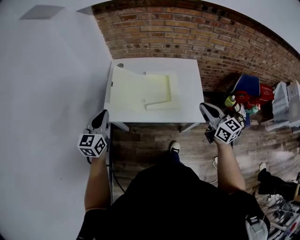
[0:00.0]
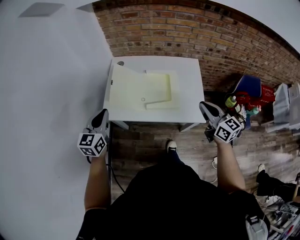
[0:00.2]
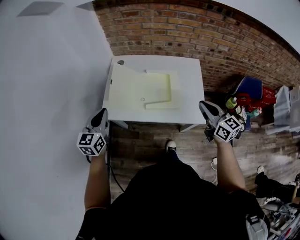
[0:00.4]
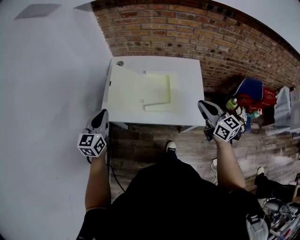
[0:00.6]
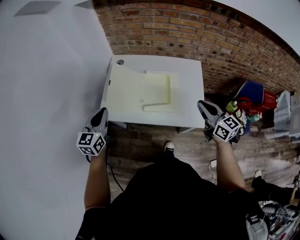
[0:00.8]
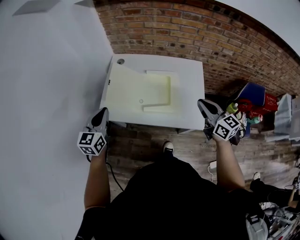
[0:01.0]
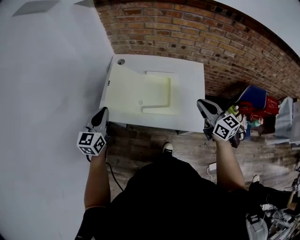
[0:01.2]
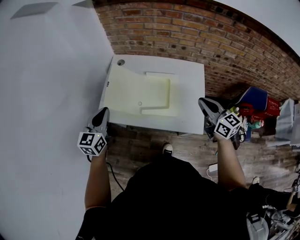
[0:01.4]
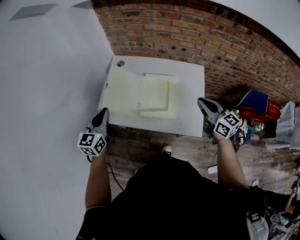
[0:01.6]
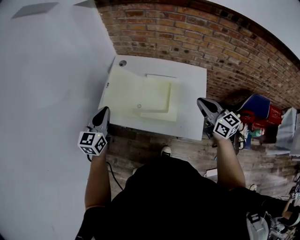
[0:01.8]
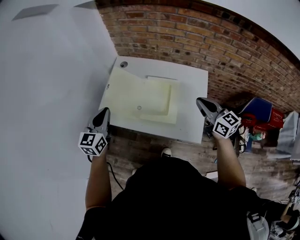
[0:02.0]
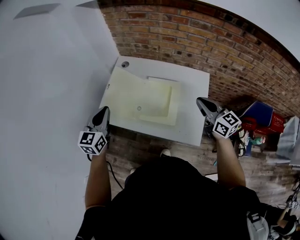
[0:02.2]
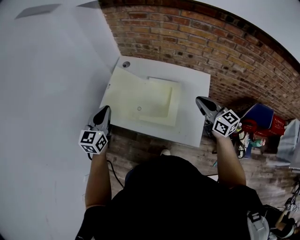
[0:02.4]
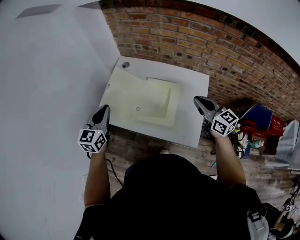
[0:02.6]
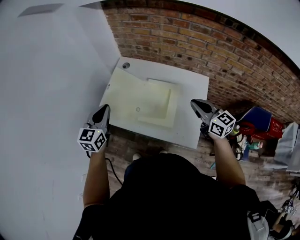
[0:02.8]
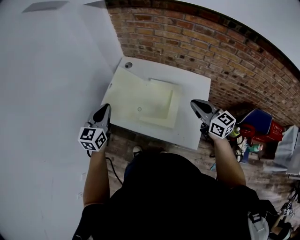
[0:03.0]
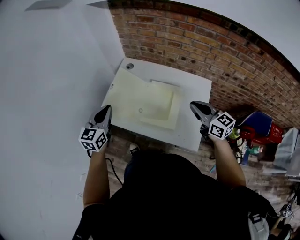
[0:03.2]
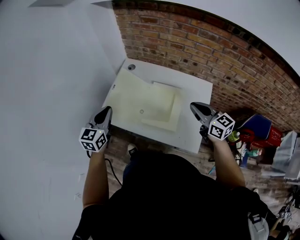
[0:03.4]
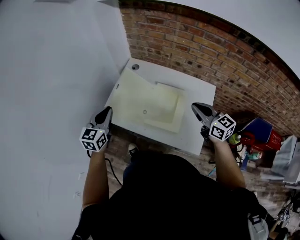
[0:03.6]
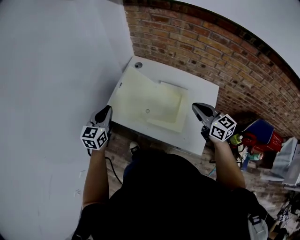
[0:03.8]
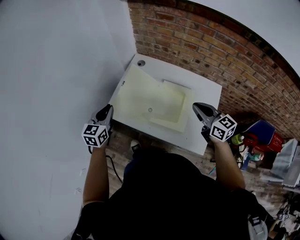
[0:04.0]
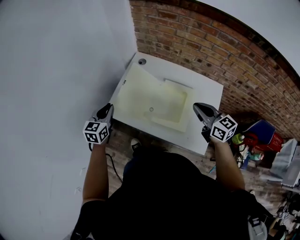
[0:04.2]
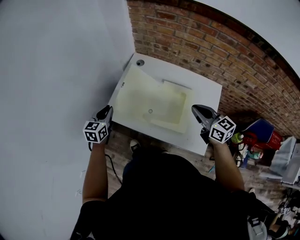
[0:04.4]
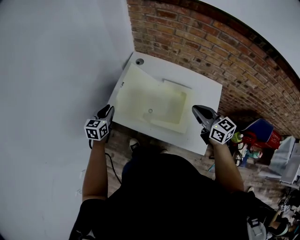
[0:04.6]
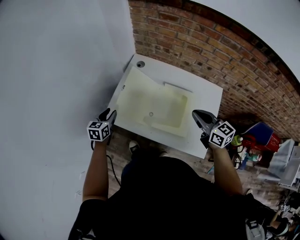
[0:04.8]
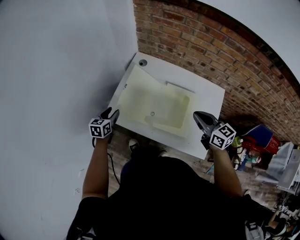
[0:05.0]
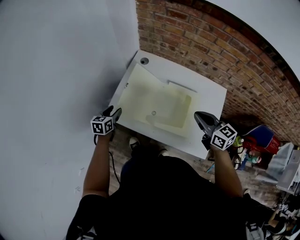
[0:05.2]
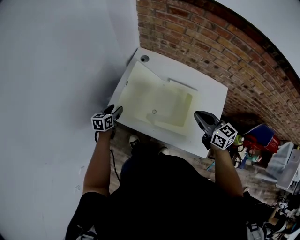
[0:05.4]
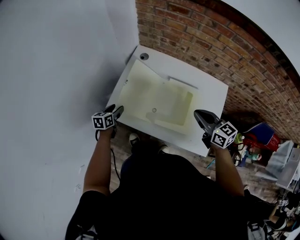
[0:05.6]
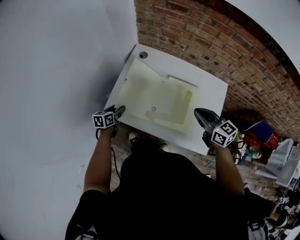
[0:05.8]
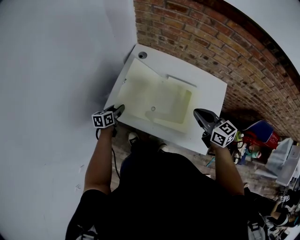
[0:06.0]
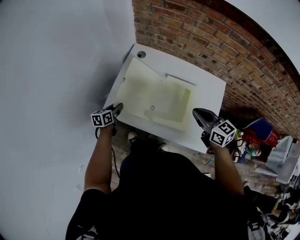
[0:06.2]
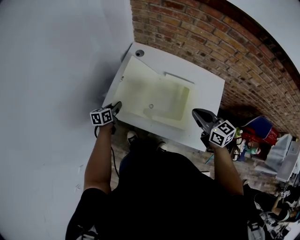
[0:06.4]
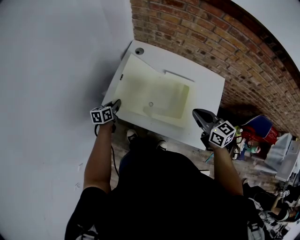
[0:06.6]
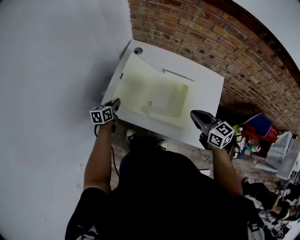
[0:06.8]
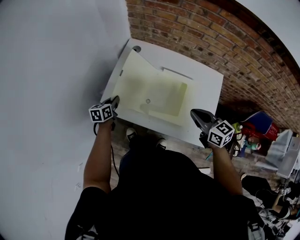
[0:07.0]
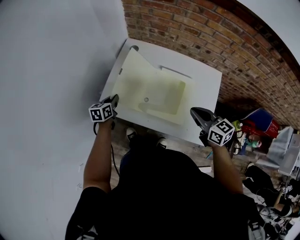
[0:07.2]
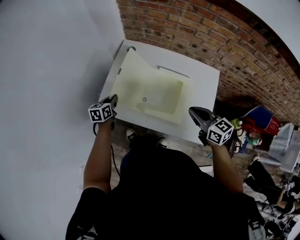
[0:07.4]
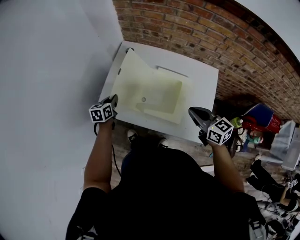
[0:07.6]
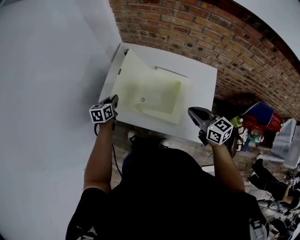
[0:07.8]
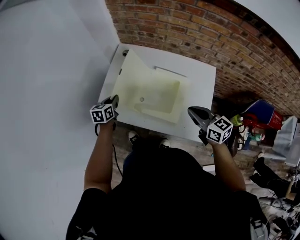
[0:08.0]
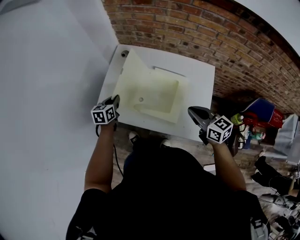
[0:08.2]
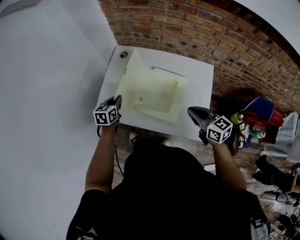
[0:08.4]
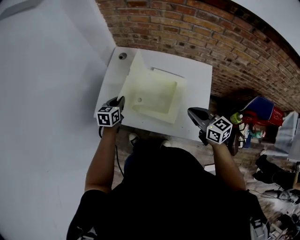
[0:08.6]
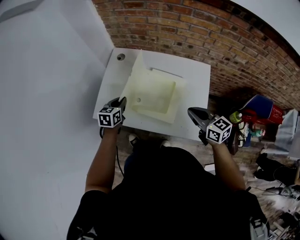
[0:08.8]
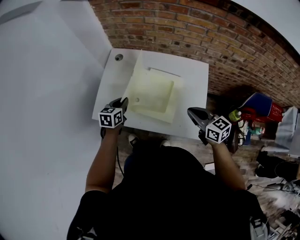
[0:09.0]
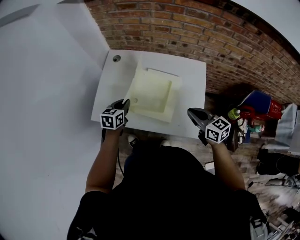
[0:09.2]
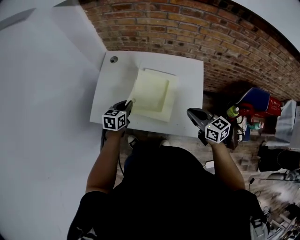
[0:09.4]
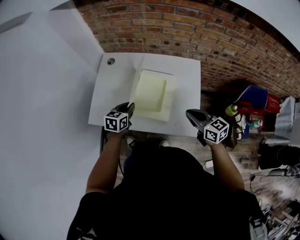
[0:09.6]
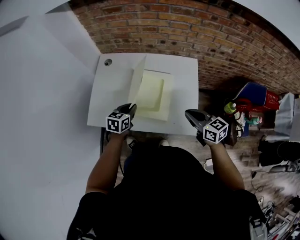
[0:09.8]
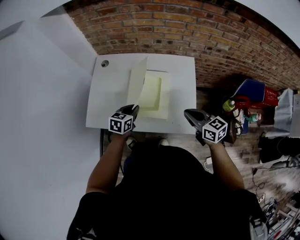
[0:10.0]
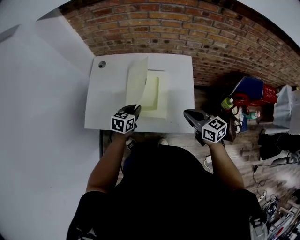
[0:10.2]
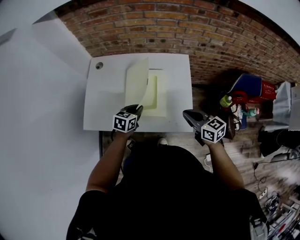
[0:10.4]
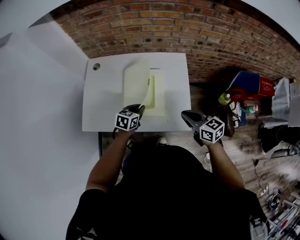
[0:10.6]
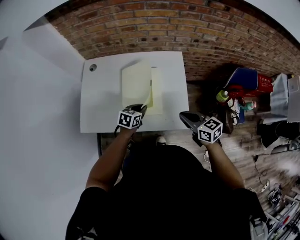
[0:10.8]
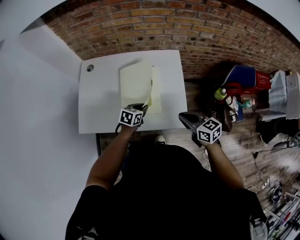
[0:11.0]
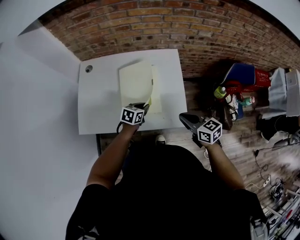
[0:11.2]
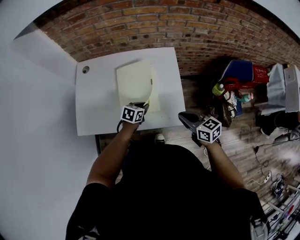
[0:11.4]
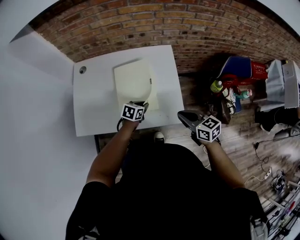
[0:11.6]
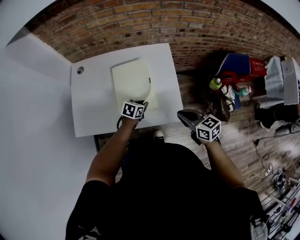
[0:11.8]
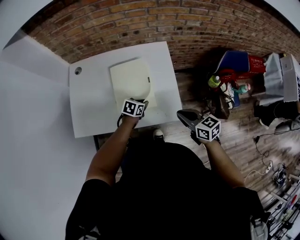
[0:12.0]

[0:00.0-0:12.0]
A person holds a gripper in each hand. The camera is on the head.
0:00.0 to 0:01.6: The left gripper heads to the right, covering roughly 5 cm; the right gripper goes some 15 cm forward and to the right.
0:01.6 to 0:03.0: The right gripper goes approximately 5 cm forward.
0:03.0 to 0:04.4: The right gripper goes roughly 10 cm to the left. Meanwhile the left gripper is displaced downward, to the left and forward by approximately 15 cm.
0:04.4 to 0:06.0: The right gripper moves some 5 cm. The left gripper goes some 15 cm downward, changes its angle by about 30 degrees, and opens.
0:06.0 to 0:07.6: The right gripper goes roughly 5 cm backward, while the left gripper ends up roughly 5 cm from where it was, and closes its fingers.
0:07.6 to 0:09.0: The left gripper heads to the right and upward, covering approximately 15 cm, while the right gripper is displaced to the right by about 5 cm.
0:09.0 to 0:10.4: The left gripper heads to the right, covering roughly 15 cm, and changes its angle by approximately 20 degrees. The right gripper travels to the right by roughly 5 cm.
0:10.4 to 0:12.0: The left gripper moves to the right and downward, some 15 cm, and turns by approximately 20 degrees. Meanwhile the right gripper changes place by approximately 5 cm.

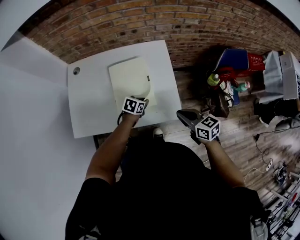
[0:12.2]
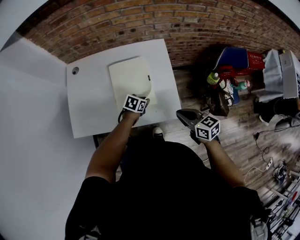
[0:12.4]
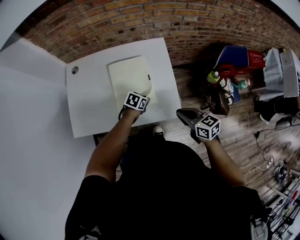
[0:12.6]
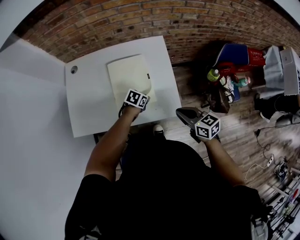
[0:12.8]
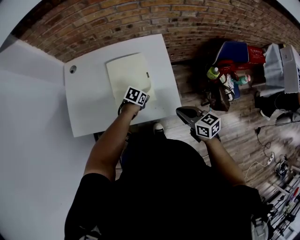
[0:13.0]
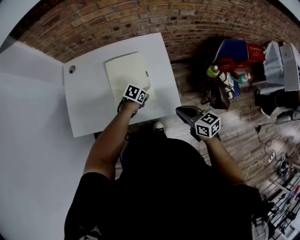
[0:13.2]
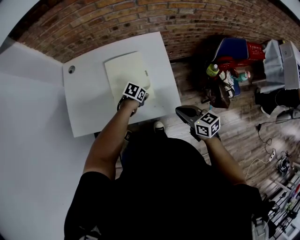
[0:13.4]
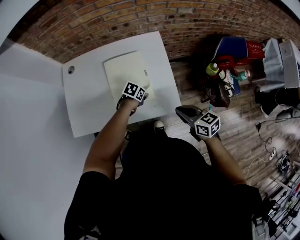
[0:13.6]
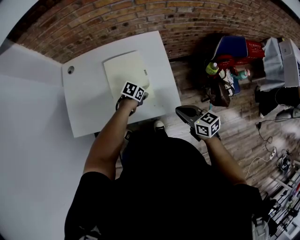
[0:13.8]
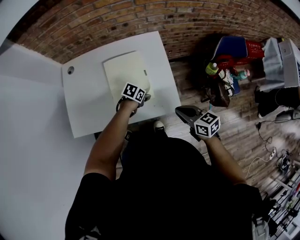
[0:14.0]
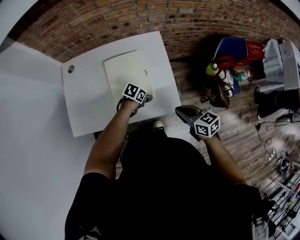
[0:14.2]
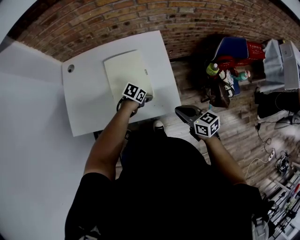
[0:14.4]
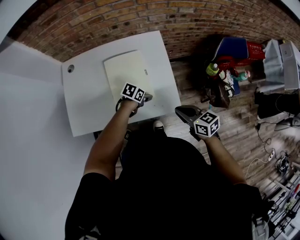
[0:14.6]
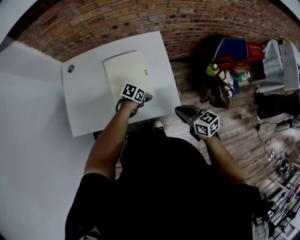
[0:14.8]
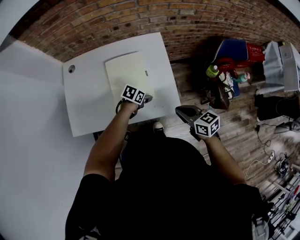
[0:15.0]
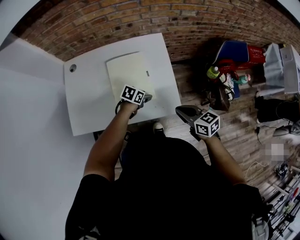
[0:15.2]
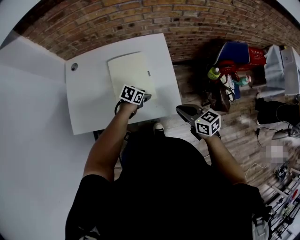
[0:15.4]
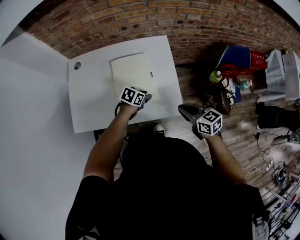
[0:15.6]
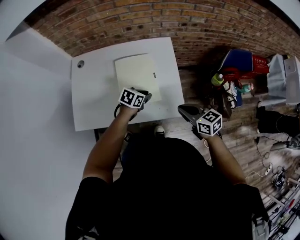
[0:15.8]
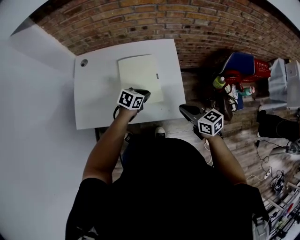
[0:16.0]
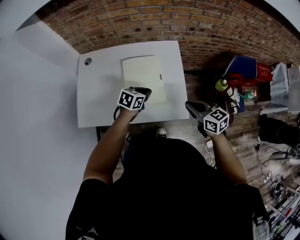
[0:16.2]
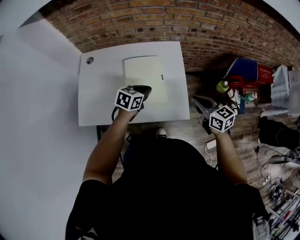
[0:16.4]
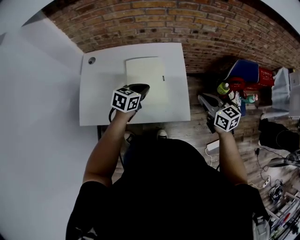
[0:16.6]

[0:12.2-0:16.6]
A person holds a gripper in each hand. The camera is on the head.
0:12.2 to 0:13.6: The grippers move only a little.
0:13.6 to 0:15.2: The left gripper opens its fingers.
0:15.2 to 0:16.6: The right gripper heads forward and upward, covering about 10 cm. Meanwhile the left gripper travels upward by approximately 20 cm, swivels about 30 degrees, and closes up.

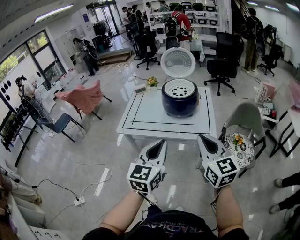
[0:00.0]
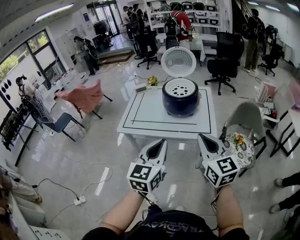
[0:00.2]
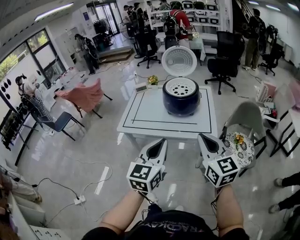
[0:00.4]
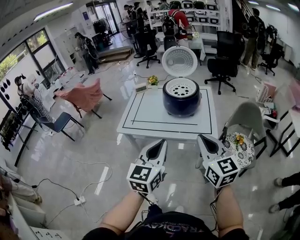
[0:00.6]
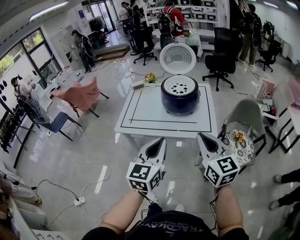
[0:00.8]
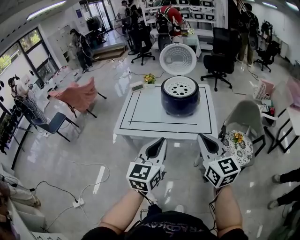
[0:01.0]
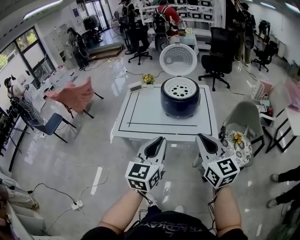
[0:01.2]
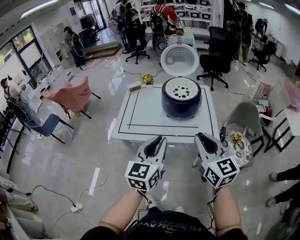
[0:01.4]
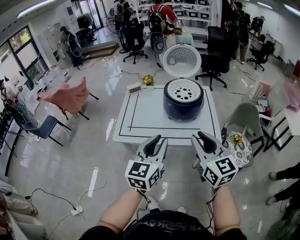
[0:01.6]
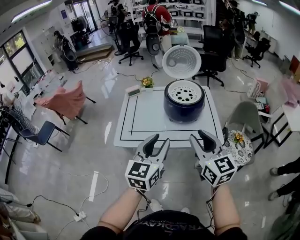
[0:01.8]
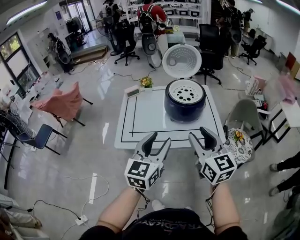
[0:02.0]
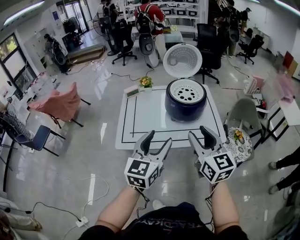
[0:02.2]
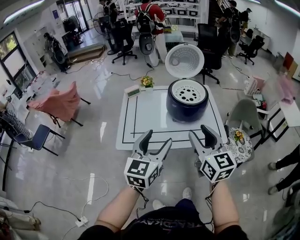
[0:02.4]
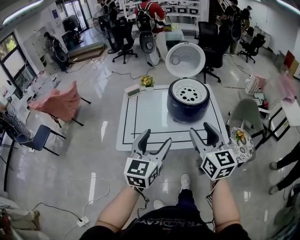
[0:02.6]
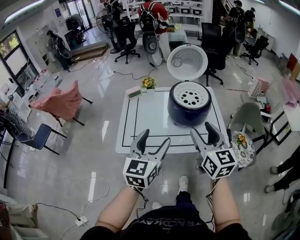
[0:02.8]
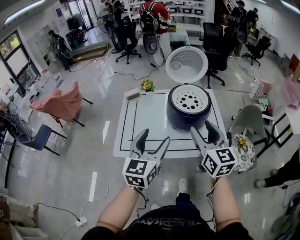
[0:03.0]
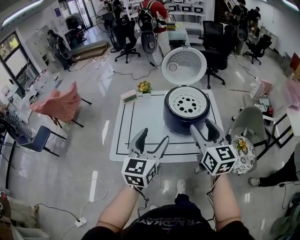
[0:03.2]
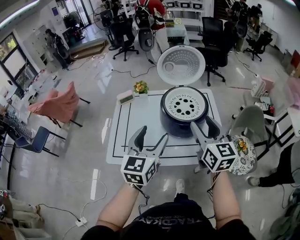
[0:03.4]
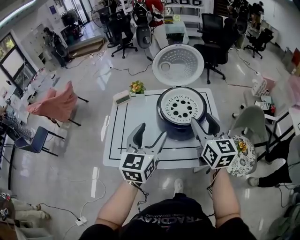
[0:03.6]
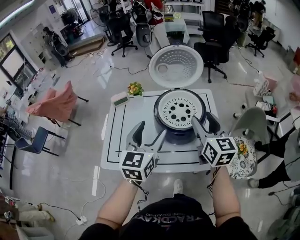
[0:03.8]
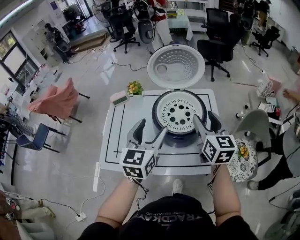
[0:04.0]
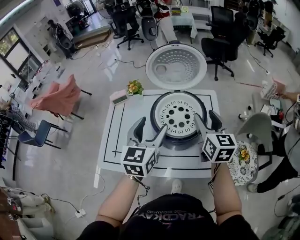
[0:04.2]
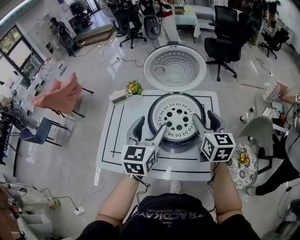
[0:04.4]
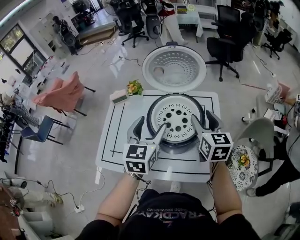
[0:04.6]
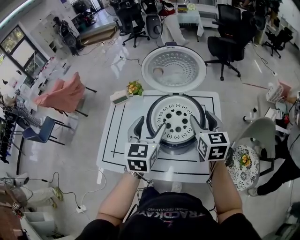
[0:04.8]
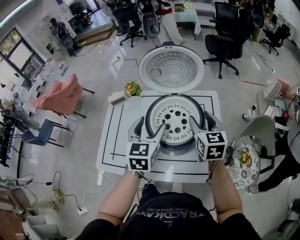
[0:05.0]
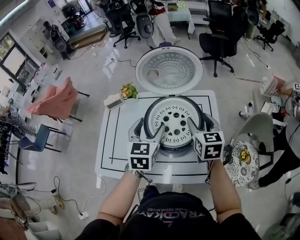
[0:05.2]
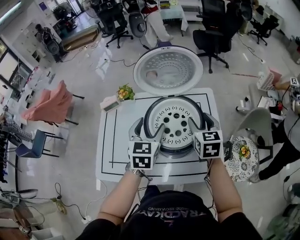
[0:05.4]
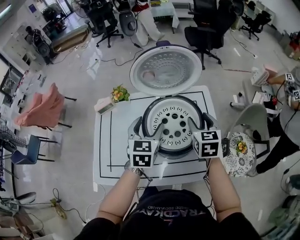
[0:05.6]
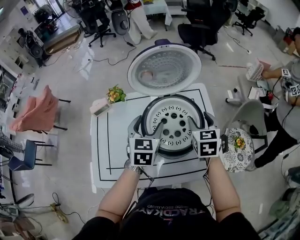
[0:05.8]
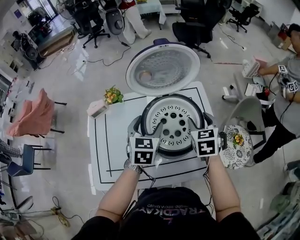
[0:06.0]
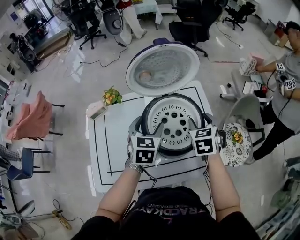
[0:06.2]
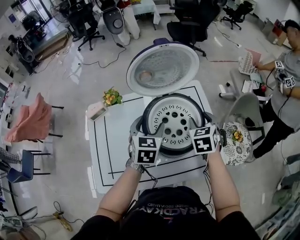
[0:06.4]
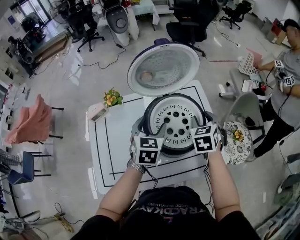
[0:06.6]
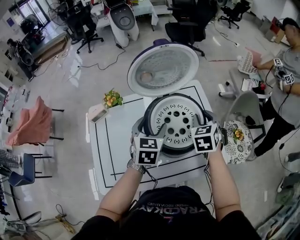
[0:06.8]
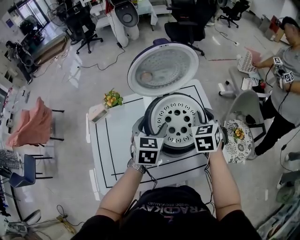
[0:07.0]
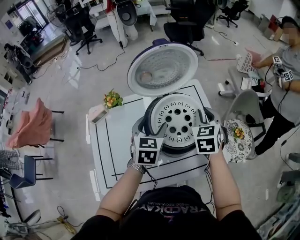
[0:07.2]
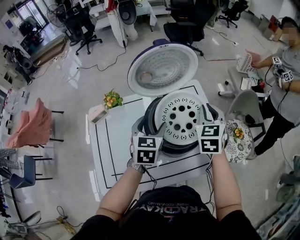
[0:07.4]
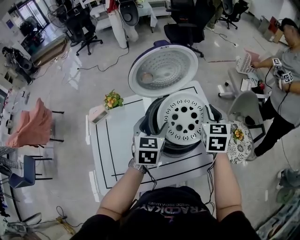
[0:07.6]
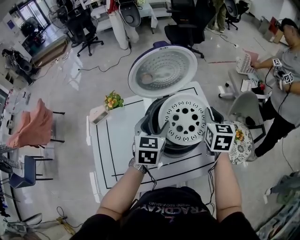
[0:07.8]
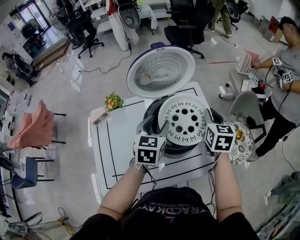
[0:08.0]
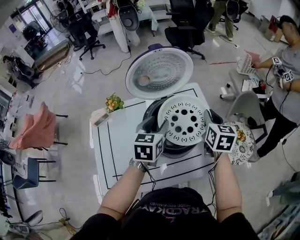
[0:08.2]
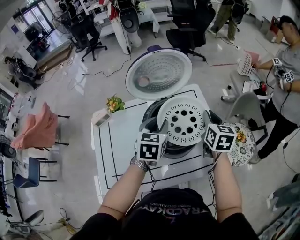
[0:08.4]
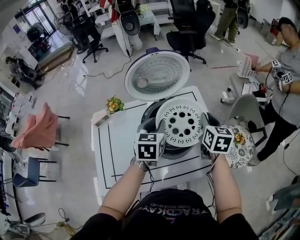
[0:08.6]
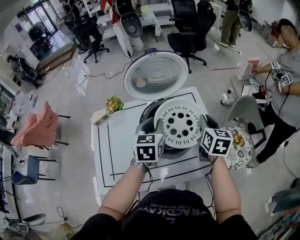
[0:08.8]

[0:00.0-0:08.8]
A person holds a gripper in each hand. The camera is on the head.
0:00.0 to 0:01.4: Both grippers move forward and to the left, approximately 10 cm.
0:01.4 to 0:03.0: Both grippers move forward and to the left, some 20 cm. The right gripper opens up. The left gripper opens its fingers.
0:03.0 to 0:04.4: Both grippers move forward and to the right, roughly 30 cm.
0:04.4 to 0:05.8: The left gripper goes about 15 cm forward and downward. Meanwhile the right gripper goes about 10 cm downward, and rotates approximately 30 degrees.
0:05.8 to 0:07.4: The right gripper is displaced upward by about 5 cm, and closes up.
0:07.4 to 0:08.8: The left gripper shifts by about 5 cm, and closes its fingers. Meanwhile the right gripper ends up some 5 cm from where it was, and rotates some 30 degrees.
